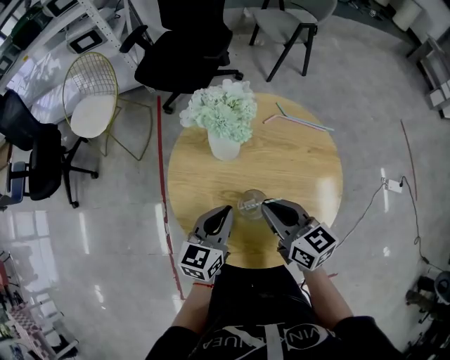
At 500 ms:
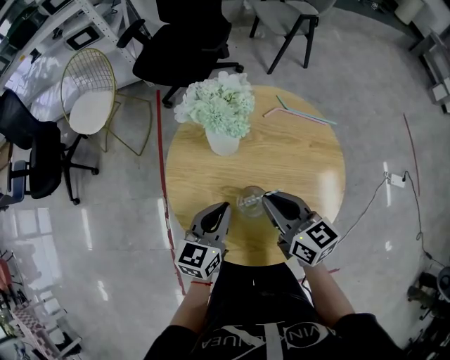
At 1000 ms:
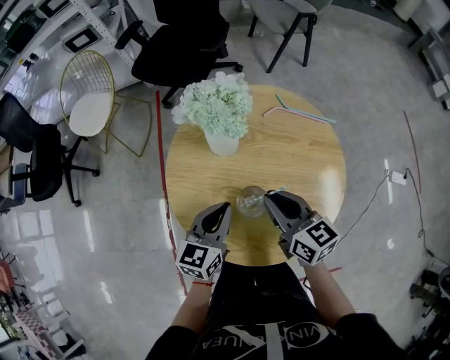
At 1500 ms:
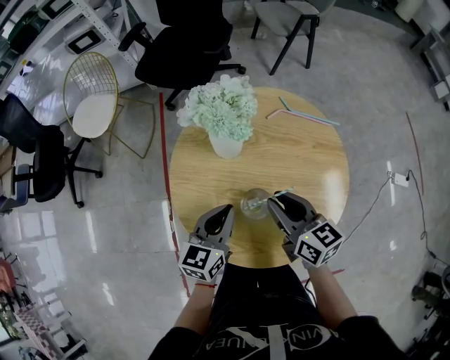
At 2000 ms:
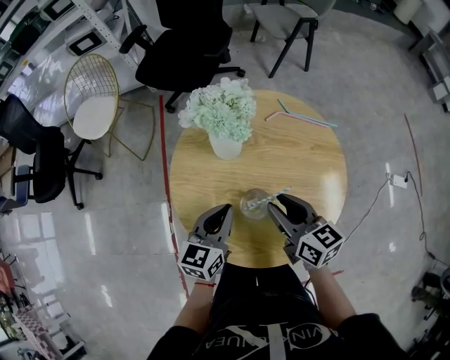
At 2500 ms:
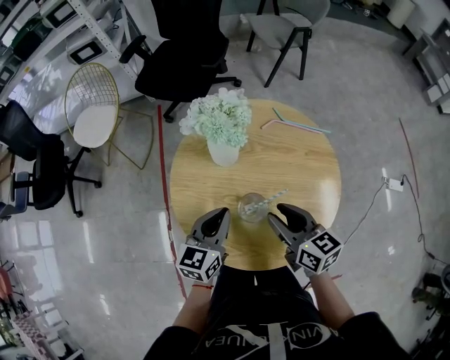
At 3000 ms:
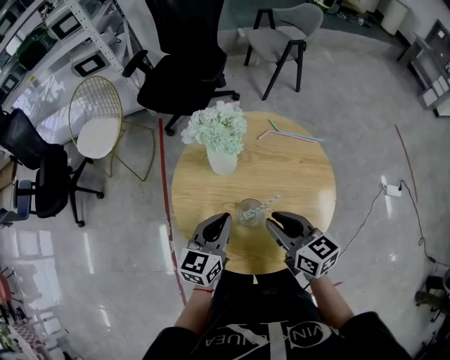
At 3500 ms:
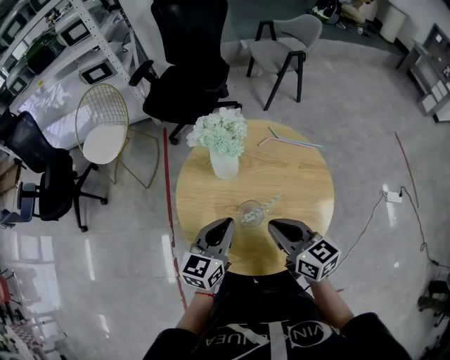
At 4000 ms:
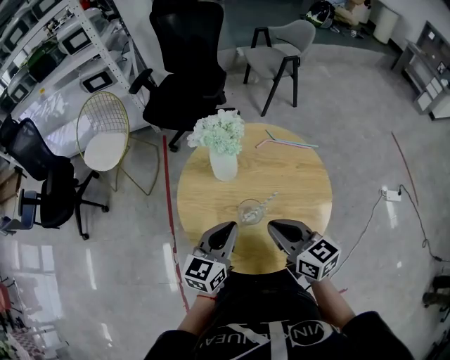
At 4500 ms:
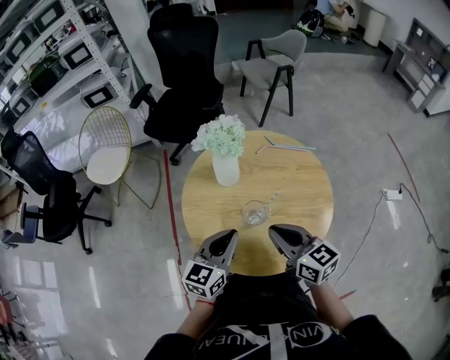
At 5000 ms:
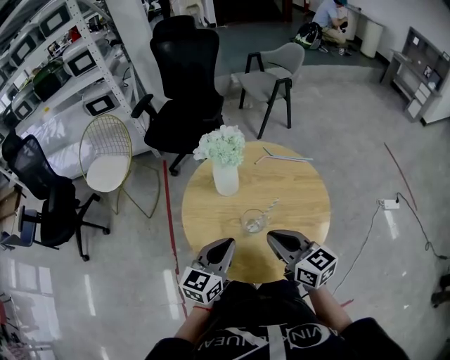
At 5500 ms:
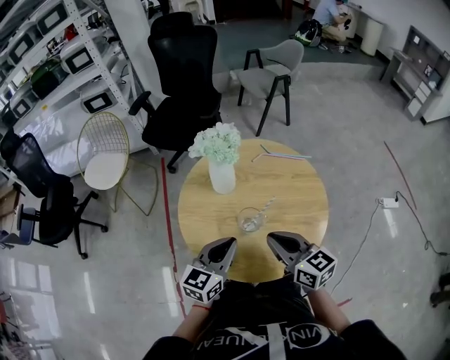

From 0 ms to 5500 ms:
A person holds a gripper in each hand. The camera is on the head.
From 0 ms to 2000 ms: The right gripper opens.
From 2000 ms to 3500 ms: The grippers both shift upward by about 5 cm. The right gripper closes its fingers.
From 3500 ms to 5500 ms: The left gripper goes roughly 5 cm backward.

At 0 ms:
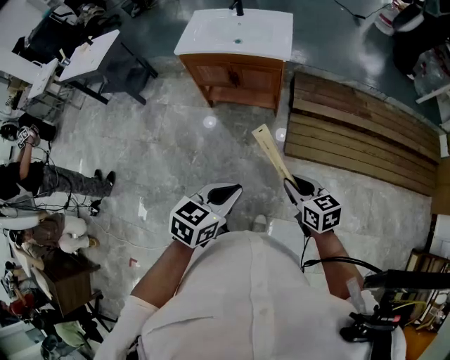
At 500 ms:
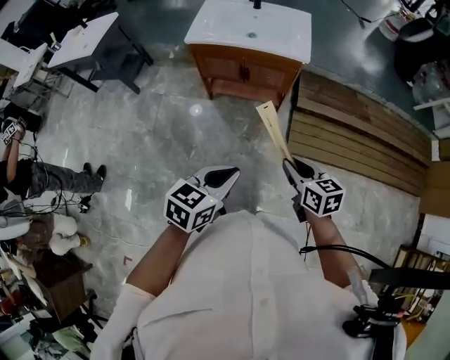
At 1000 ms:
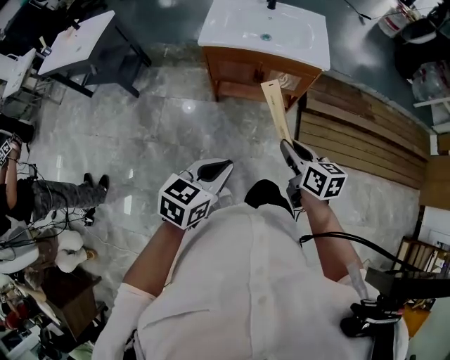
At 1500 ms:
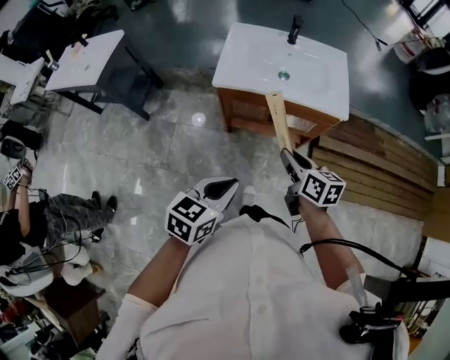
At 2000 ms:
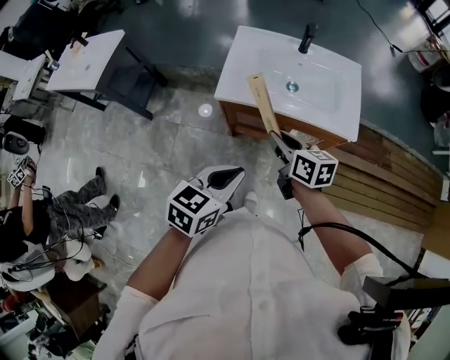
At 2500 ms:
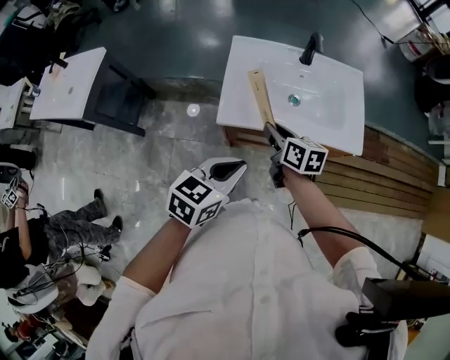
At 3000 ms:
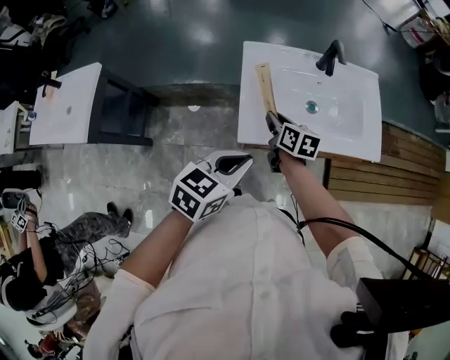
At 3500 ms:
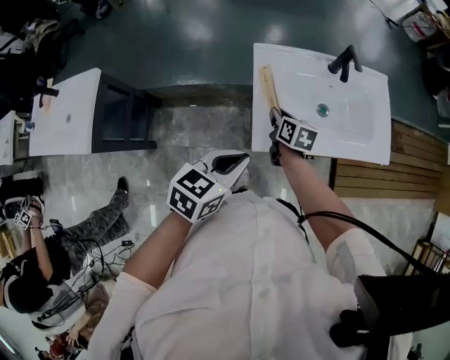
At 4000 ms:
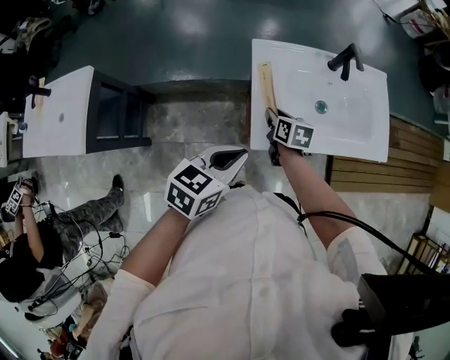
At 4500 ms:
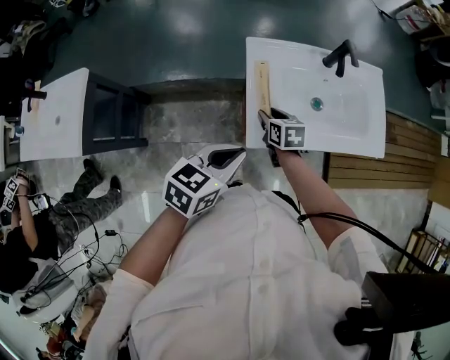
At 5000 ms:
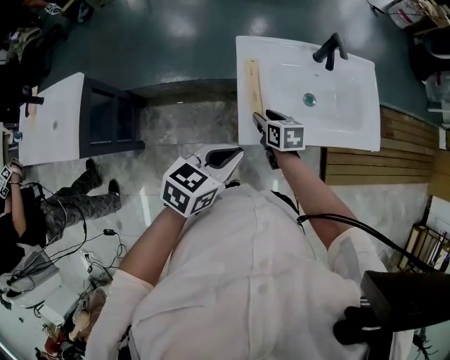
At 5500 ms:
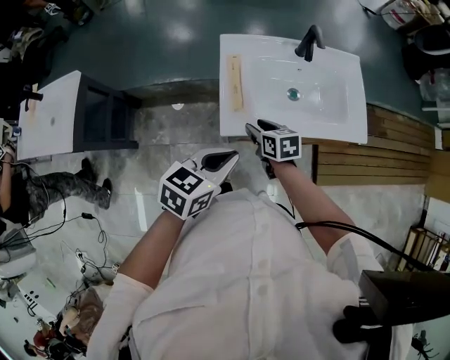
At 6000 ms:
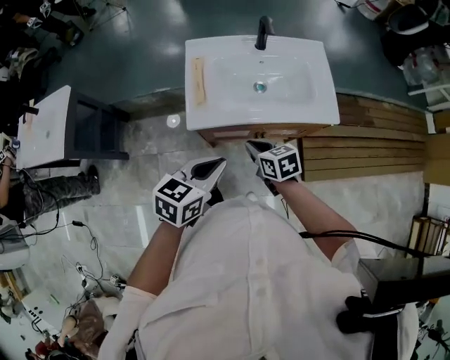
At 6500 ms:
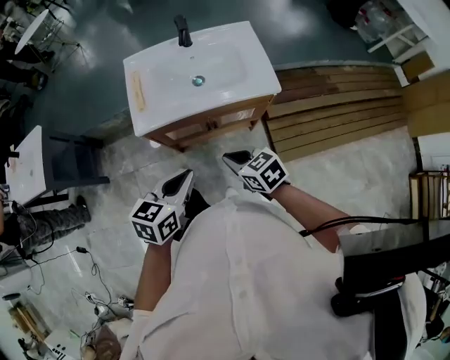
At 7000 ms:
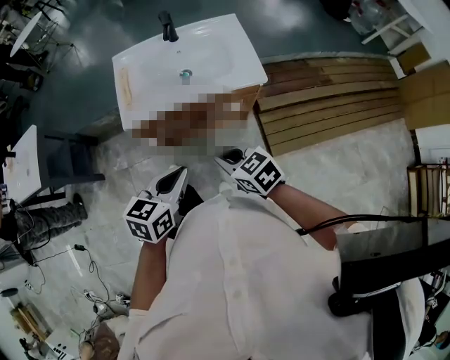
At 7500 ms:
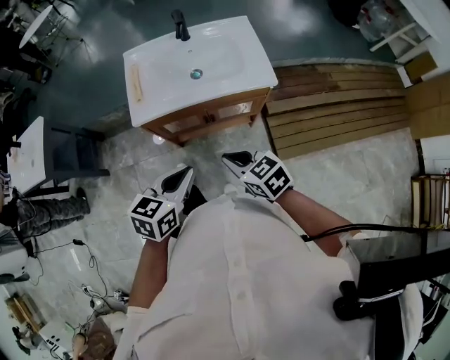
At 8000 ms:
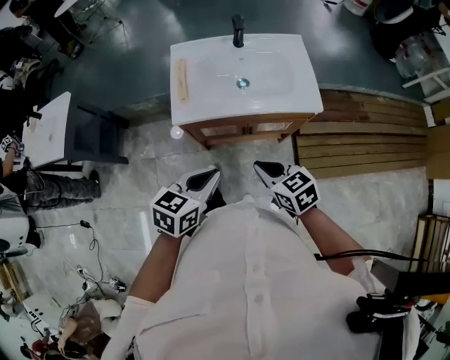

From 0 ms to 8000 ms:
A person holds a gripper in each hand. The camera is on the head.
From 0 ms to 2000 ms: The two grippers travel together, forward and to the left, about 50 cm.
From 2000 ms to 4000 ms: The left gripper moves to the left and forward, roughly 35 cm. The right gripper moves forward, to the left and downward, about 35 cm, and rotates some 30 degrees.
From 4000 ms to 6000 ms: The right gripper shifts about 25 cm backward and to the right, changes its angle by approximately 20 degrees, and opens, then closes once more. The left gripper is displaced to the right and backward by approximately 20 cm.
From 6000 ms to 8000 ms: The right gripper goes roughly 15 cm backward, to the right and upward. Meanwhile the left gripper travels backward and to the right by roughly 10 cm.

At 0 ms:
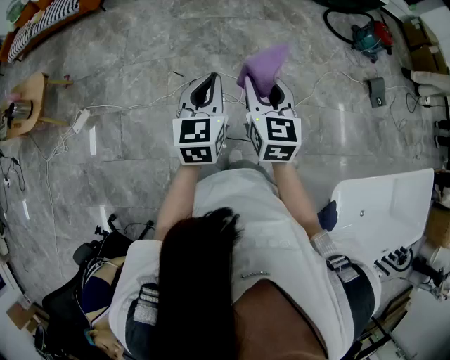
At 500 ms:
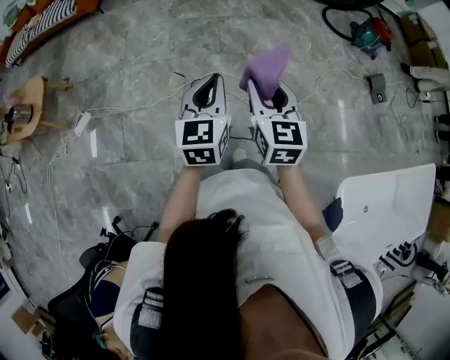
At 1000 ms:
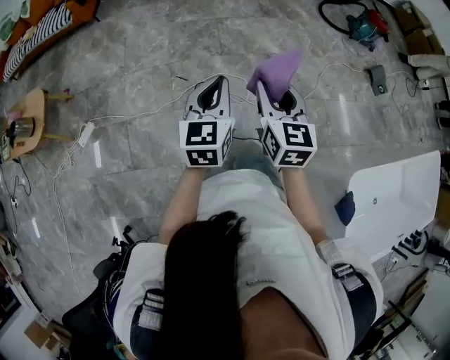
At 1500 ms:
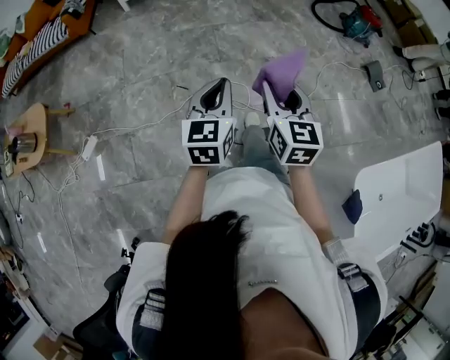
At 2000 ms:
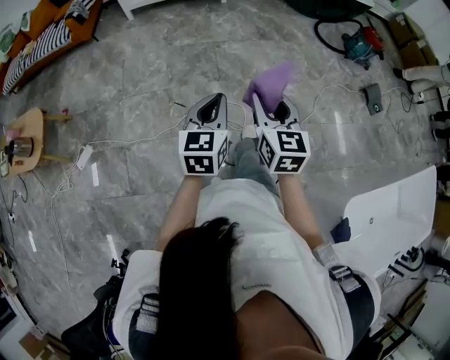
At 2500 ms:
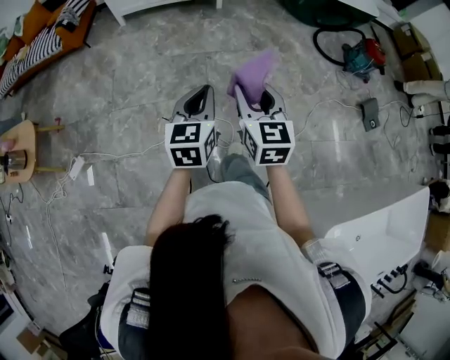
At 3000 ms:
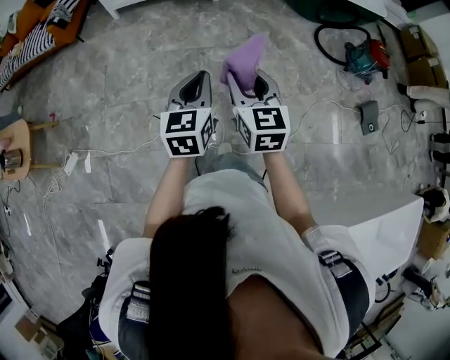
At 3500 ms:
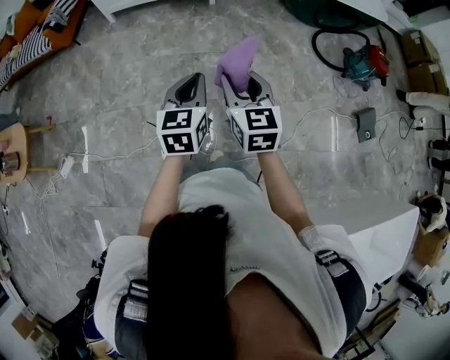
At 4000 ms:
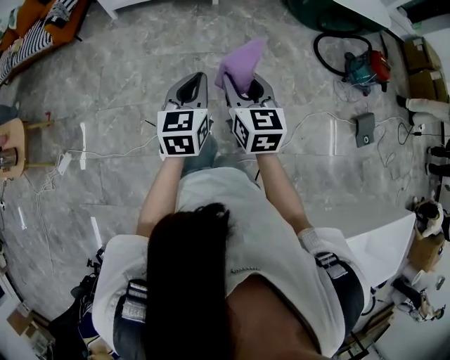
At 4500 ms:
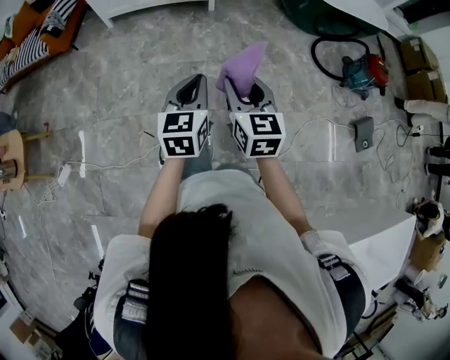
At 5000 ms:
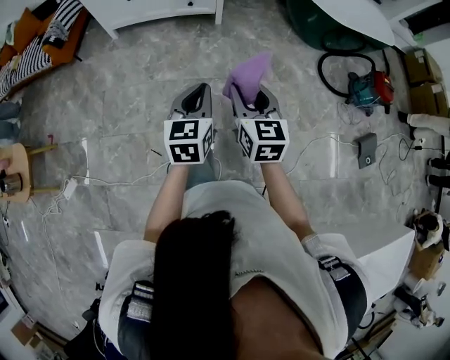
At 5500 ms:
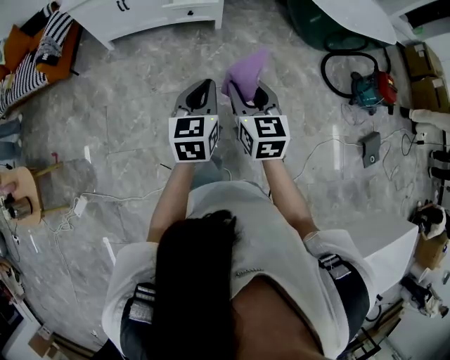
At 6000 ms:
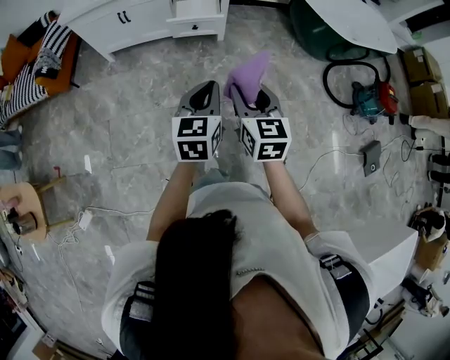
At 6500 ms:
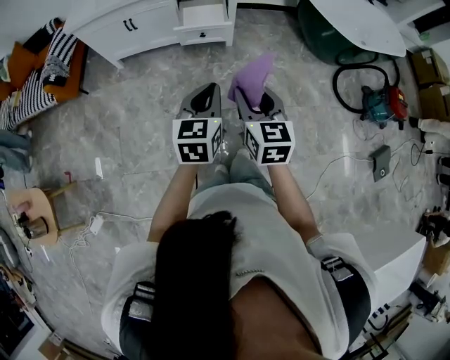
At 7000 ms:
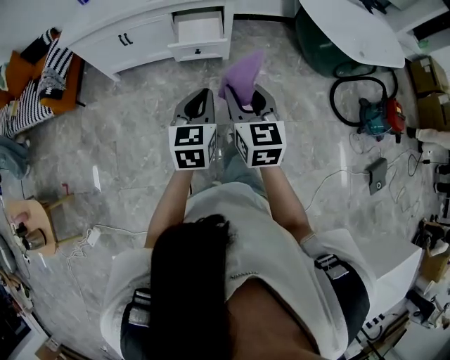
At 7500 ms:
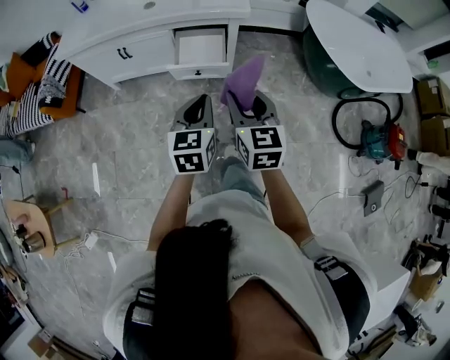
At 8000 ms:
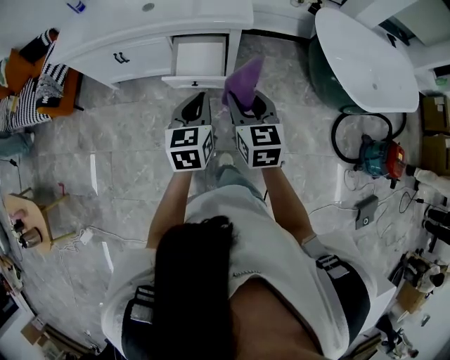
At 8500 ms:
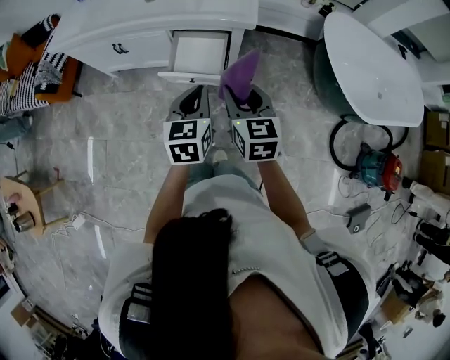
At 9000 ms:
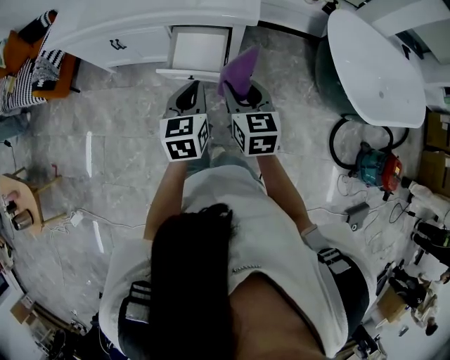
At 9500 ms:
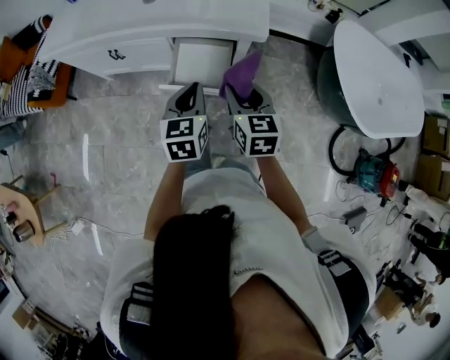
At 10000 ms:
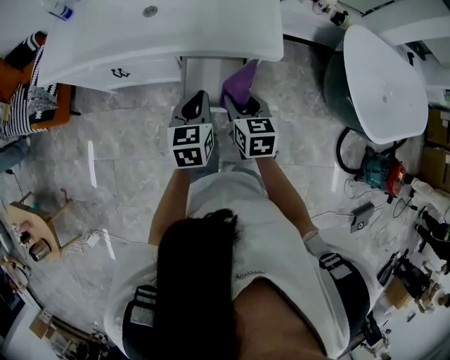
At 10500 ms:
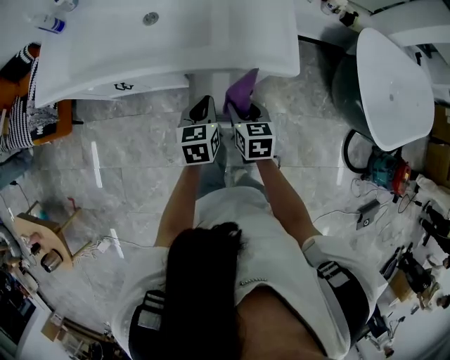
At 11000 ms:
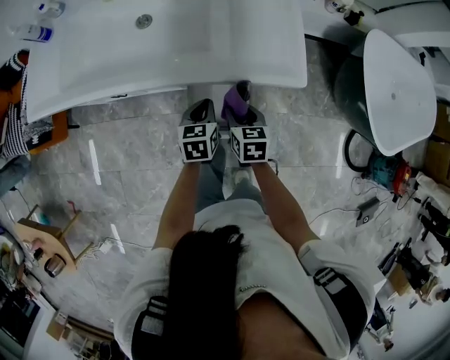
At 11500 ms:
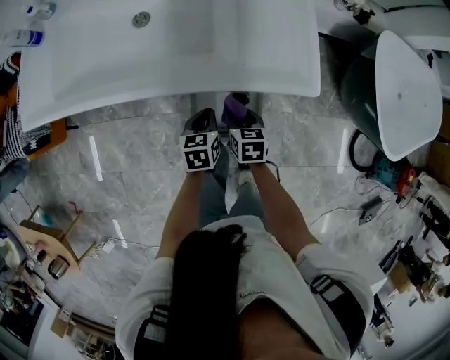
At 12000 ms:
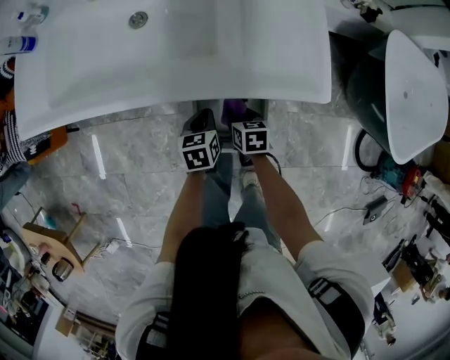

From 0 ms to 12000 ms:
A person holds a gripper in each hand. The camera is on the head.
From 0 ms to 2000 ms: Both grippers move forward, approximately 5 cm.
From 2000 ms to 4000 ms: The grippers both shift forward and to the right by approximately 35 cm.
From 4000 ms to 6000 ms: Both grippers travel together forward, about 35 cm.
From 6000 ms to 8000 ms: The grippers both shift forward by about 35 cm.
From 8000 ms to 10000 ms: The right gripper moves forward and downward, about 25 cm; the left gripper is displaced forward by about 20 cm.
From 10000 ms to 12000 ms: The right gripper goes about 25 cm downward, and changes its angle by approximately 30 degrees. Meanwhile the left gripper moves downward and forward, about 25 cm, and rotates about 20 degrees.

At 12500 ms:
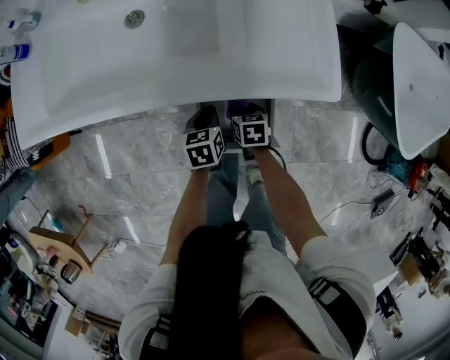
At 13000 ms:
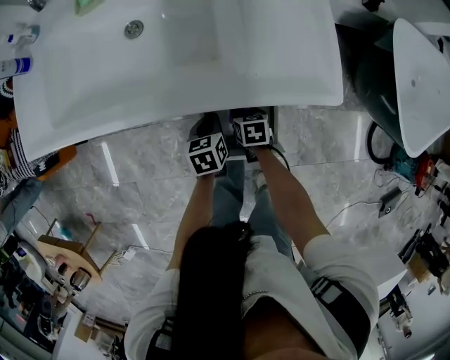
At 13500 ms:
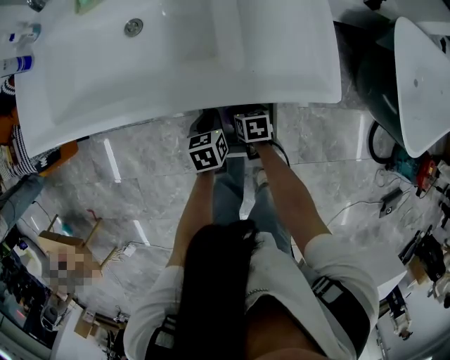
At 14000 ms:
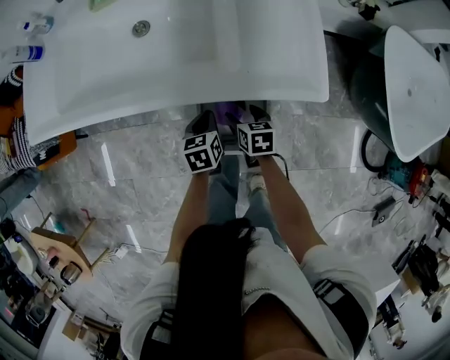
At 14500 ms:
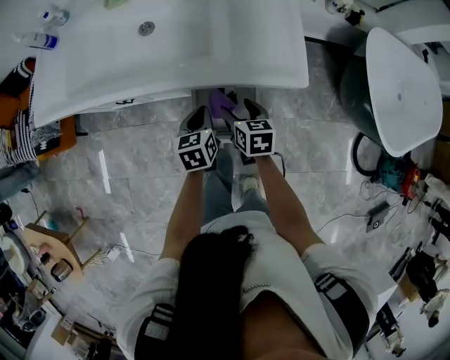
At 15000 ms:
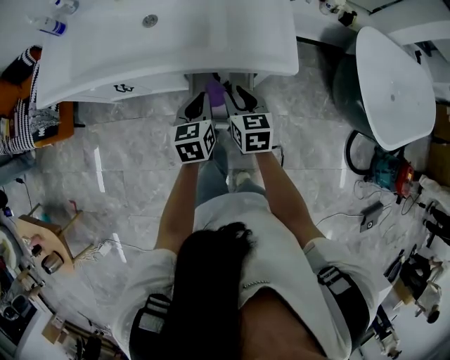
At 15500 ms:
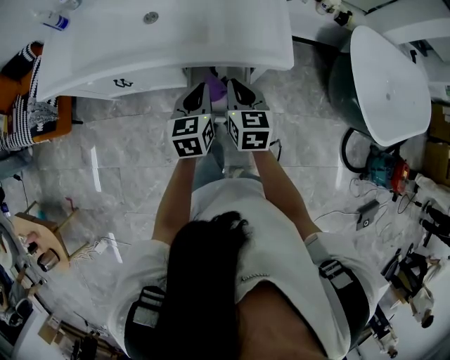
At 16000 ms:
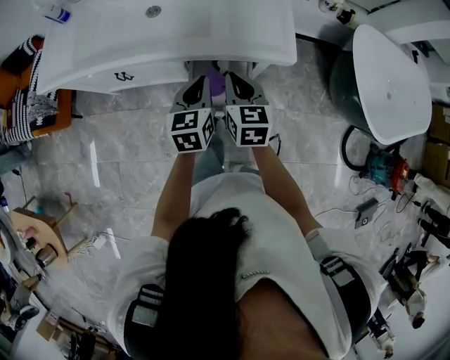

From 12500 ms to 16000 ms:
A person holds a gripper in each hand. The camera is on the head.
From 12500 ms to 14500 ms: The grippers both shift upward by about 15 cm. The right gripper opens.
From 14500 ms to 16000 ms: The two grippers go roughly 15 cm upward. The right gripper rotates about 20 degrees, and closes up.
